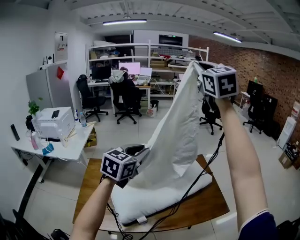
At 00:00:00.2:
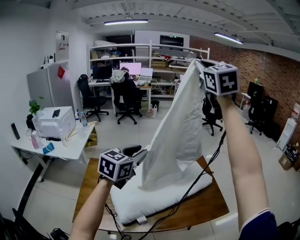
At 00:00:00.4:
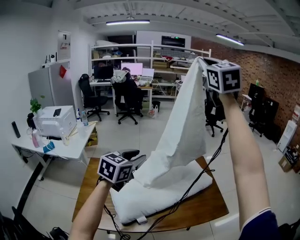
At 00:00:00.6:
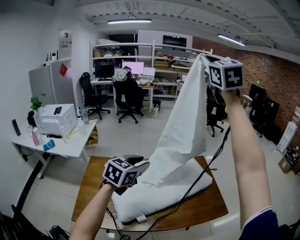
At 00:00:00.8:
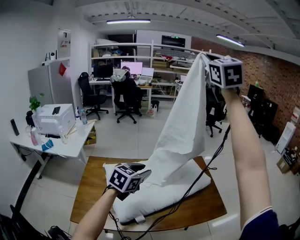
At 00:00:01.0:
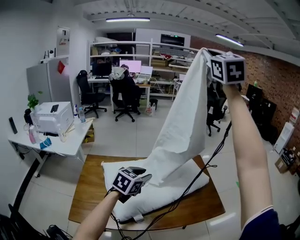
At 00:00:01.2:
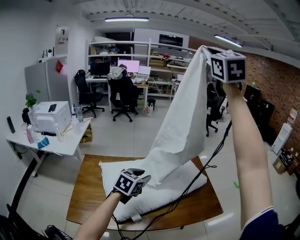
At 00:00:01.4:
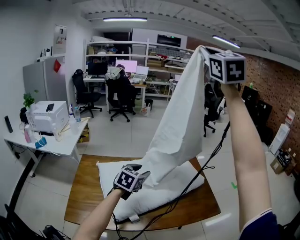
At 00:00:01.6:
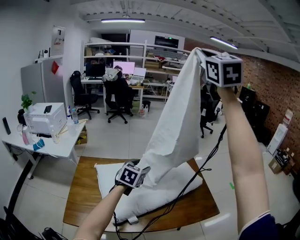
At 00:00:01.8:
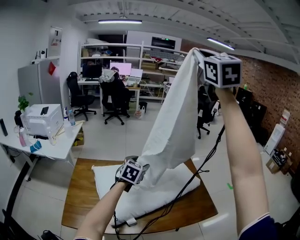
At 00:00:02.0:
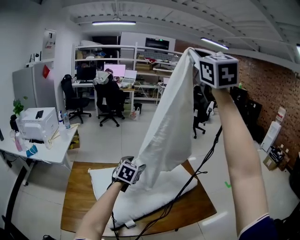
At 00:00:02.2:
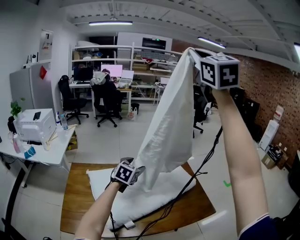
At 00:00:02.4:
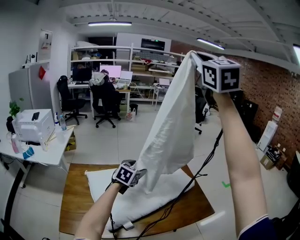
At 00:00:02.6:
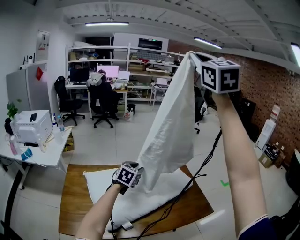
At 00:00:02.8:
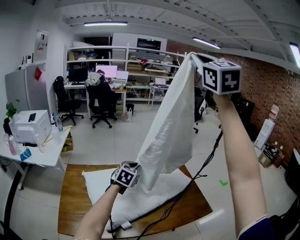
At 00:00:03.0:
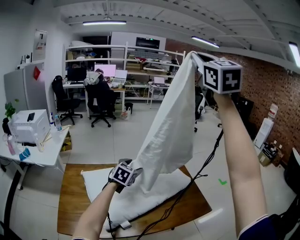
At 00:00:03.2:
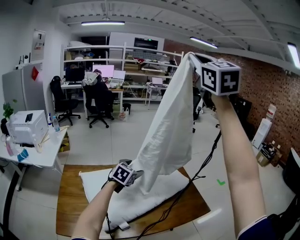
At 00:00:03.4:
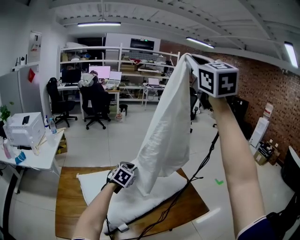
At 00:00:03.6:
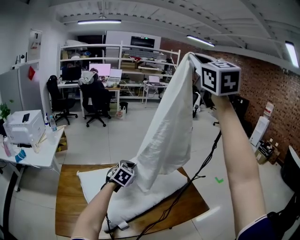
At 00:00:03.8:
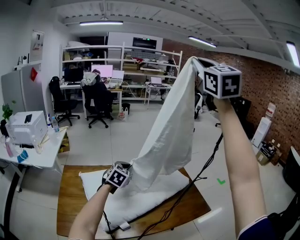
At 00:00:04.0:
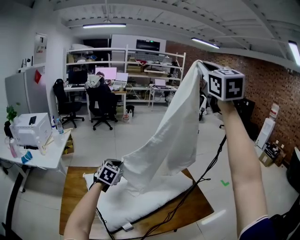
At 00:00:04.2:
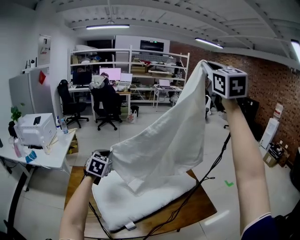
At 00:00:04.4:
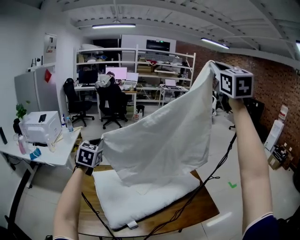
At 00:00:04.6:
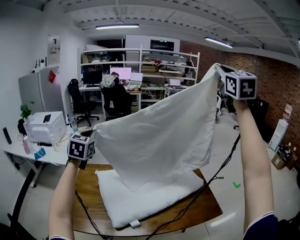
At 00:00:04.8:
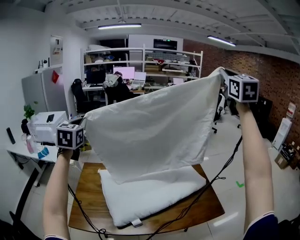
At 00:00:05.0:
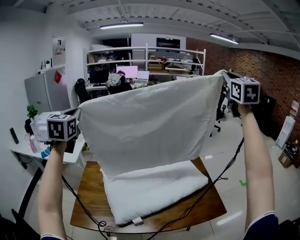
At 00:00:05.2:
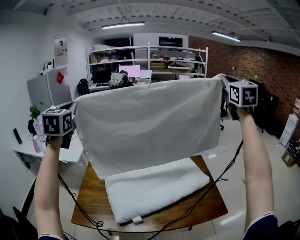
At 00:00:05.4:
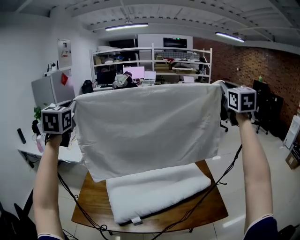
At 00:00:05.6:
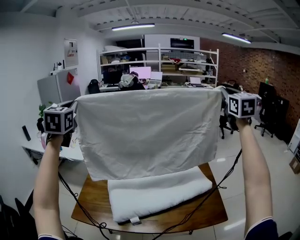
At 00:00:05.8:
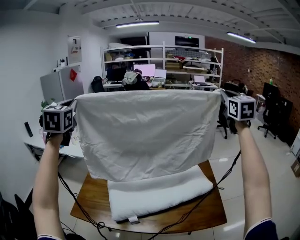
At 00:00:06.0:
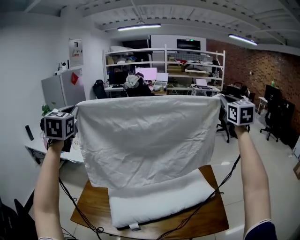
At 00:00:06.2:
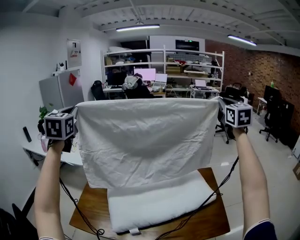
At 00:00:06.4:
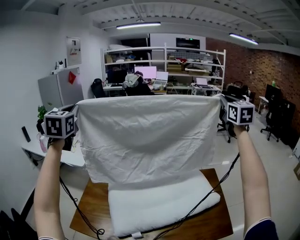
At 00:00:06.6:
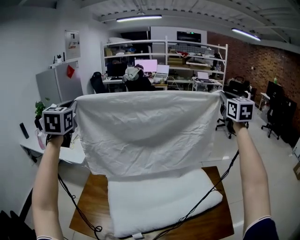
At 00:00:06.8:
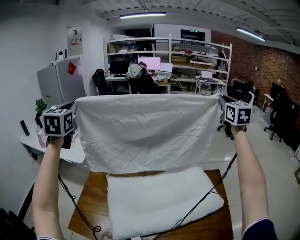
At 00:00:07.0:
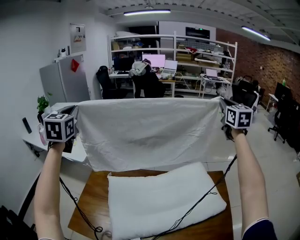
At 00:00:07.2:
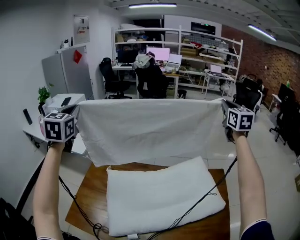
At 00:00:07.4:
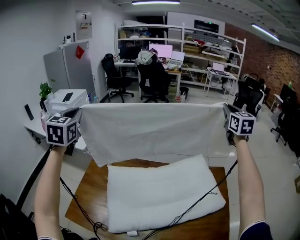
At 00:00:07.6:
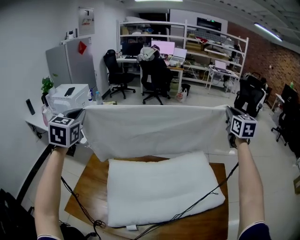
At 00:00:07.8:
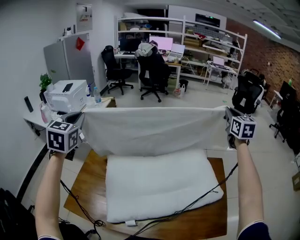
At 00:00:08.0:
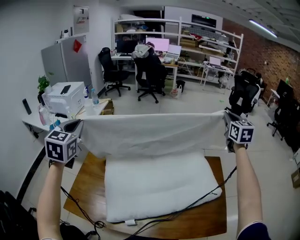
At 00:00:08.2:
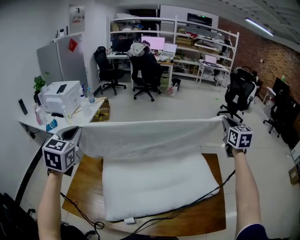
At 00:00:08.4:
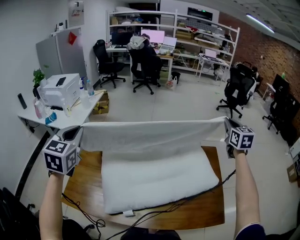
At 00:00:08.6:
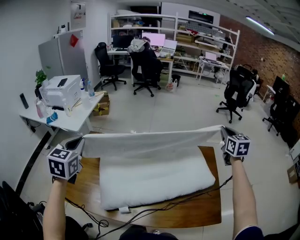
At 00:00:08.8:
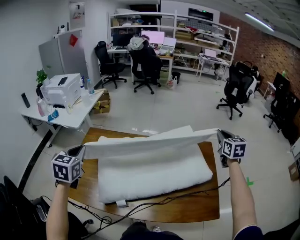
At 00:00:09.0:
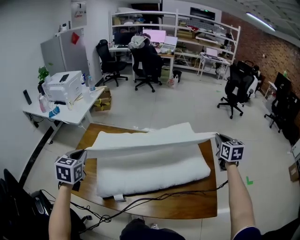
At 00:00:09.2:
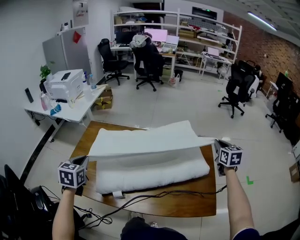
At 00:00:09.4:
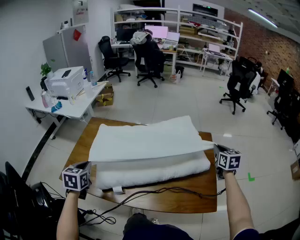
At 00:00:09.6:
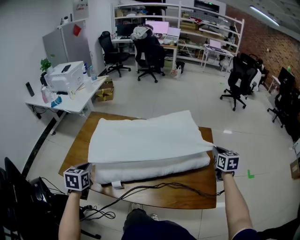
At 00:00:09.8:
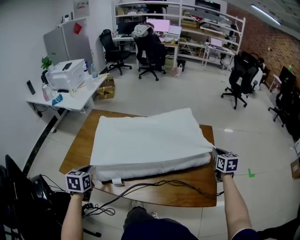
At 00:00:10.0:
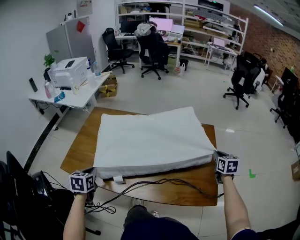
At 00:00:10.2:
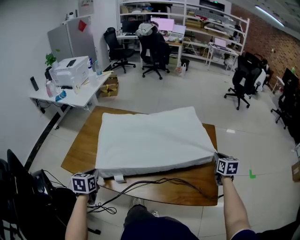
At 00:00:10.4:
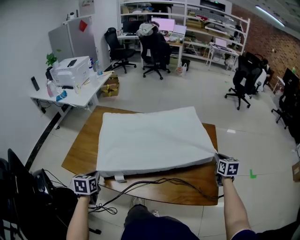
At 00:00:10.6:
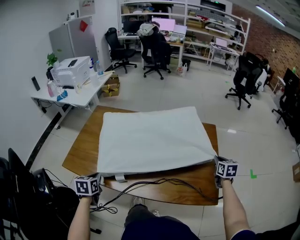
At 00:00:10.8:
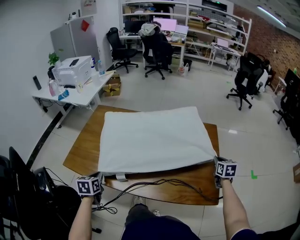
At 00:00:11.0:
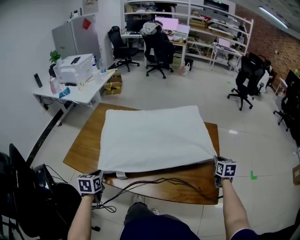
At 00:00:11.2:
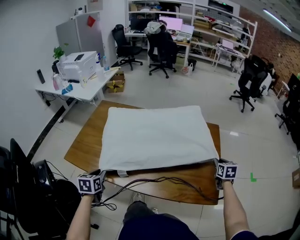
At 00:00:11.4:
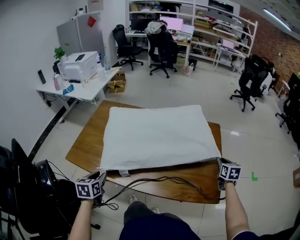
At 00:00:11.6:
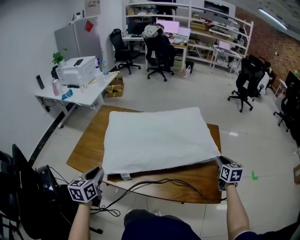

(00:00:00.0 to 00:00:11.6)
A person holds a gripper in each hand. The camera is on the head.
00:00:00.0 - 00:00:01.4: The left gripper travels downward by about 15 cm, and opens; the right gripper moves upward, approximately 5 cm.
00:00:01.4 - 00:00:02.8: The left gripper shifts approximately 10 cm forward, and closes.
00:00:02.8 - 00:00:04.4: The right gripper goes some 5 cm to the right; the left gripper shifts some 30 cm to the left and upward, swivels approximately 30 degrees, and opens, then closes once more.
00:00:04.4 - 00:00:05.8: The left gripper is displaced upward, to the left and backward by about 25 cm, and swivels about 30 degrees, while the right gripper shifts roughly 20 cm downward, forward and to the right.
00:00:05.8 - 00:00:07.2: The grippers both shift forward and downward by some 20 cm.
00:00:07.2 - 00:00:08.8: The two grippers go approximately 30 cm downward and backward. The left gripper swivels about 20 degrees.
00:00:08.8 - 00:00:10.2: Both grippers travel together downward and backward, some 25 cm. The left gripper changes its angle by some 30 degrees.
00:00:10.2 - 00:00:11.6: The left gripper moves upward, roughly 5 cm, while the right gripper ends up about 5 cm from where it was.

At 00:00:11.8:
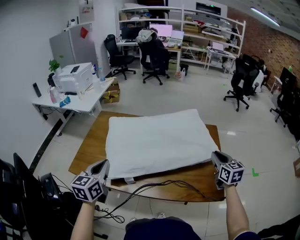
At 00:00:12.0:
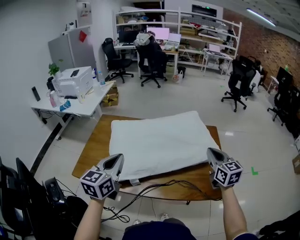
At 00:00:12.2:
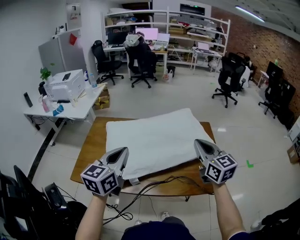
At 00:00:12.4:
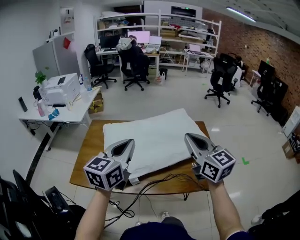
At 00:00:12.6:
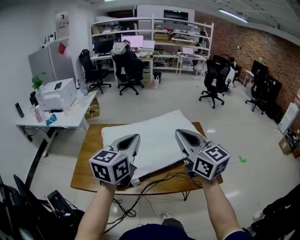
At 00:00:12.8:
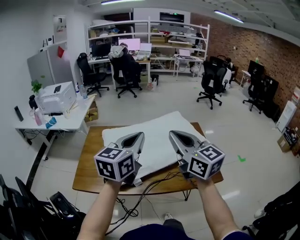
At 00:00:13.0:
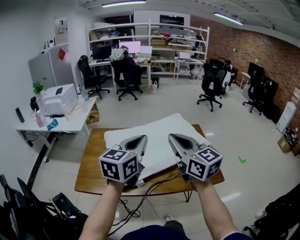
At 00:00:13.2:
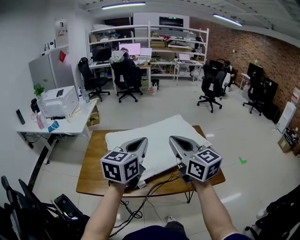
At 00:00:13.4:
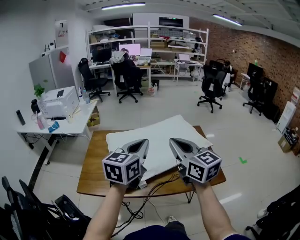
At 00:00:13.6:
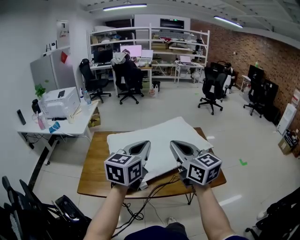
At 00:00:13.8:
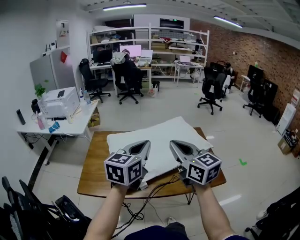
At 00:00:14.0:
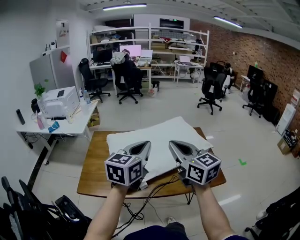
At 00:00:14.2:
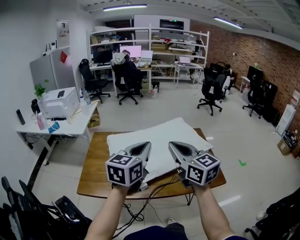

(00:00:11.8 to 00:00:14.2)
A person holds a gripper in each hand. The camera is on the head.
00:00:11.8 - 00:00:13.0: The right gripper travels to the left, upward and backward by about 35 cm, and changes its angle by approximately 30 degrees; the left gripper heads upward and to the right, covering some 20 cm, and changes its angle by approximately 30 degrees.
00:00:13.0 - 00:00:14.2: There are only small adjustments of the grippers.

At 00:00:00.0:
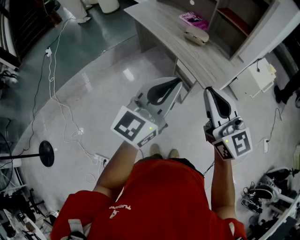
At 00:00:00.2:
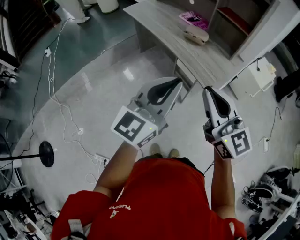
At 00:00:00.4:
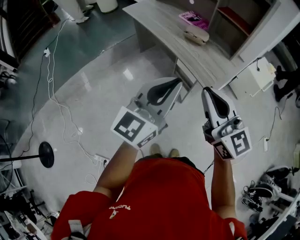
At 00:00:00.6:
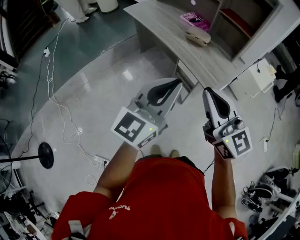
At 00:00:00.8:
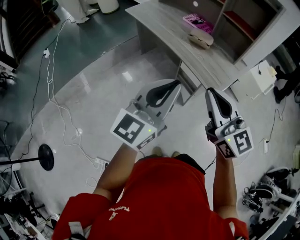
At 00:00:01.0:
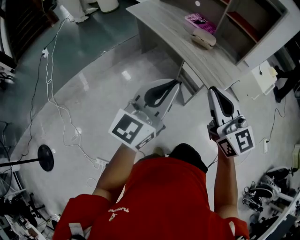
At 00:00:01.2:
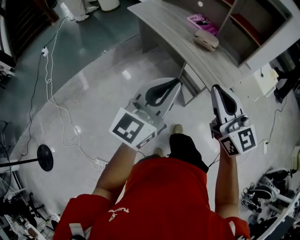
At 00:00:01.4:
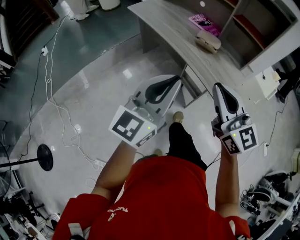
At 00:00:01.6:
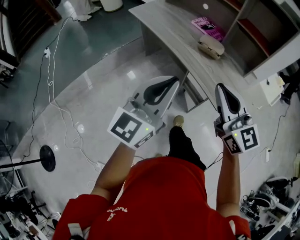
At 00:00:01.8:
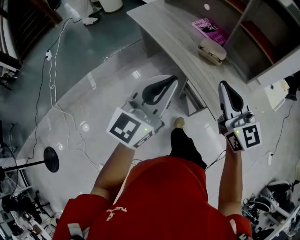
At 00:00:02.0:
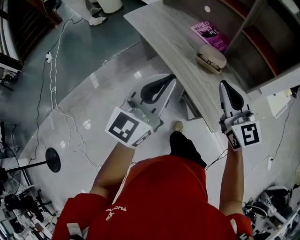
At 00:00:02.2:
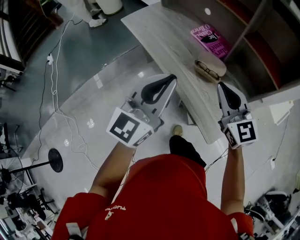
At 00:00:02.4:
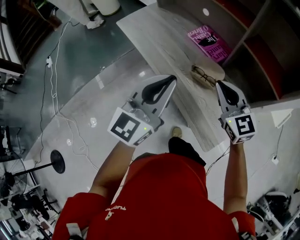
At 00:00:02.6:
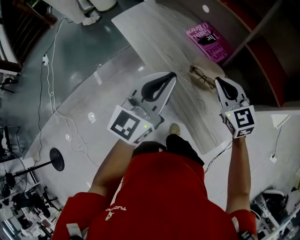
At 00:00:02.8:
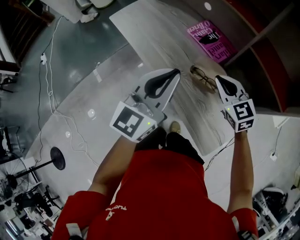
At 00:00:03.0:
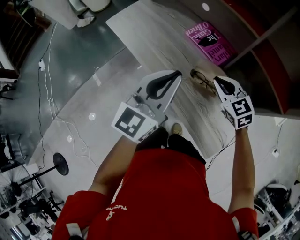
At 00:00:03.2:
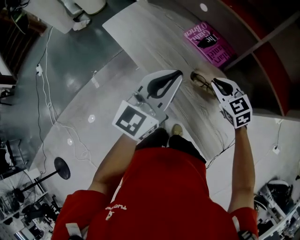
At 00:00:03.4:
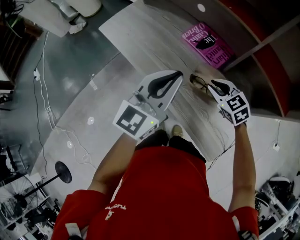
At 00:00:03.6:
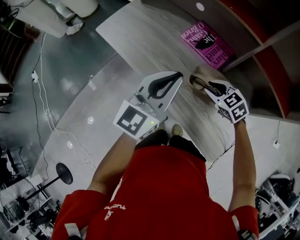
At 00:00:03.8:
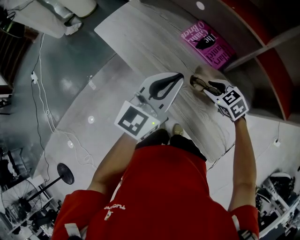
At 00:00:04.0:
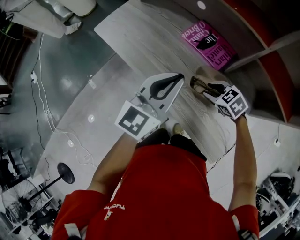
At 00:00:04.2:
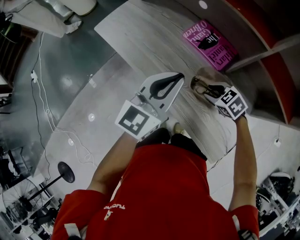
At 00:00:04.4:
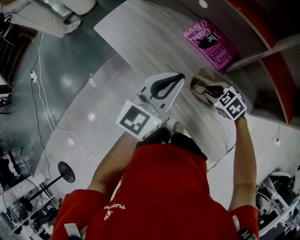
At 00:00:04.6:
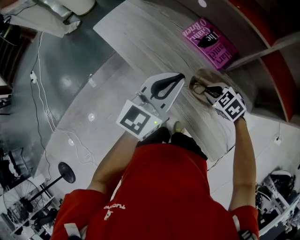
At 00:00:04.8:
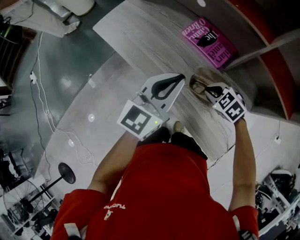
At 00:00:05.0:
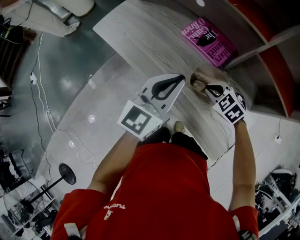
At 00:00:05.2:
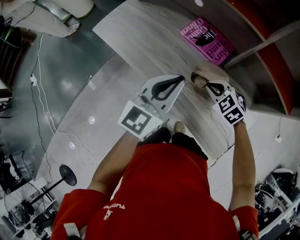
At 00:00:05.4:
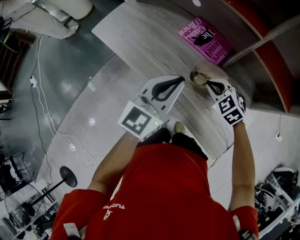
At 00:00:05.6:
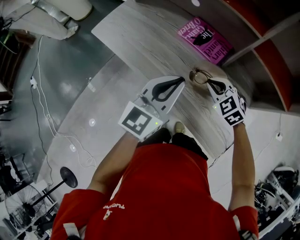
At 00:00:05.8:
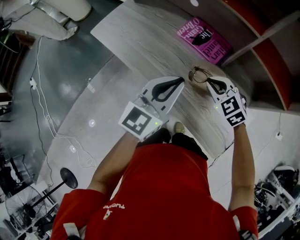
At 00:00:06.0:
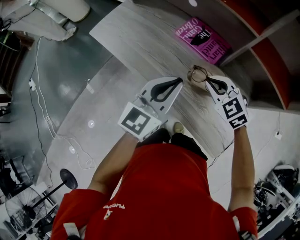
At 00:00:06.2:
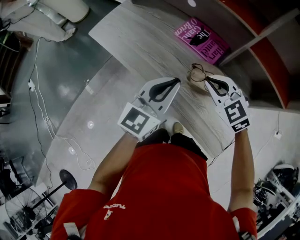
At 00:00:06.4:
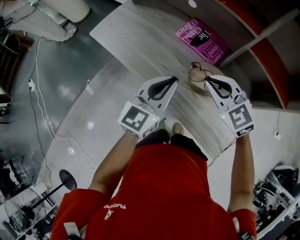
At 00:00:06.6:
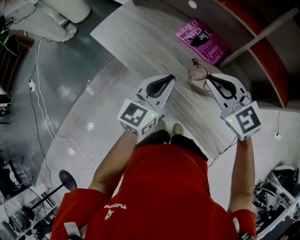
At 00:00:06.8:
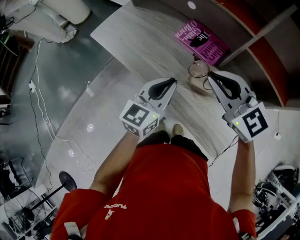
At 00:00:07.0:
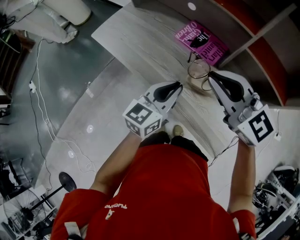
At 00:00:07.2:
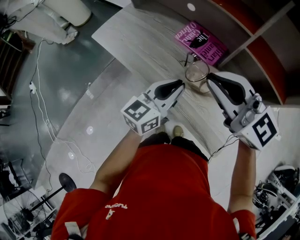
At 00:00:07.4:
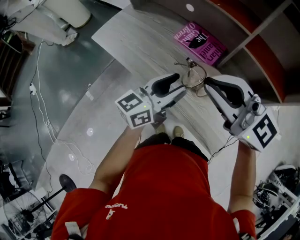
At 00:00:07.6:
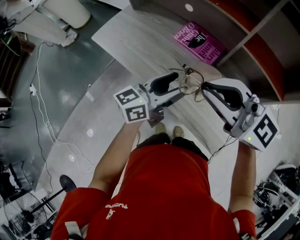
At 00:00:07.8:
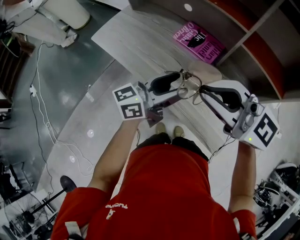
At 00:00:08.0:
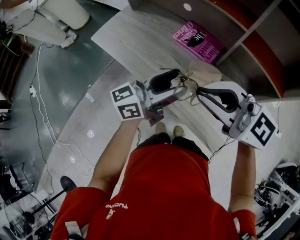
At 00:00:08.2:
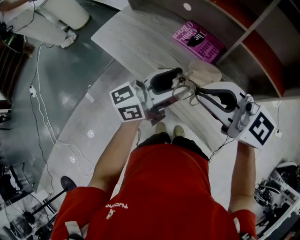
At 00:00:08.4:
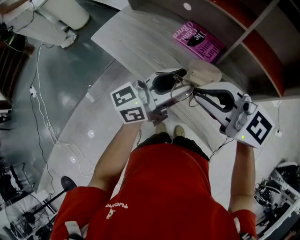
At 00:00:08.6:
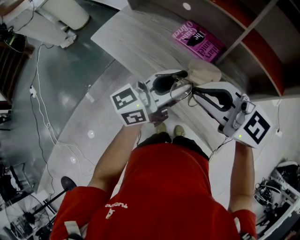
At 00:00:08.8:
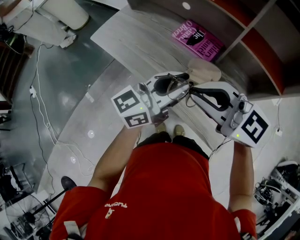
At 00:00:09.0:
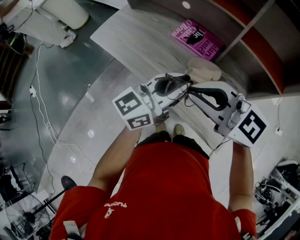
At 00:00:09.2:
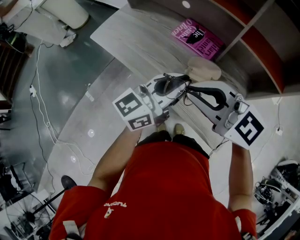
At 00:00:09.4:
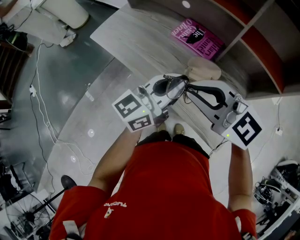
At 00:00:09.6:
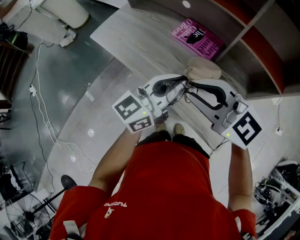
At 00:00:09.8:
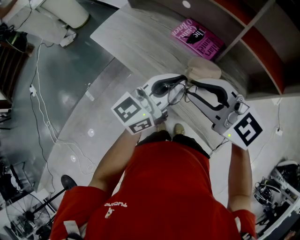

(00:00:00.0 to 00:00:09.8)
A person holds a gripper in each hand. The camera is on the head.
00:00:00.0 - 00:00:01.4: The right gripper moves forward, about 10 cm. The left gripper travels forward and to the left by roughly 10 cm.
00:00:01.4 - 00:00:02.8: The left gripper shifts approximately 35 cm forward. Meanwhile the right gripper is displaced forward and downward by some 40 cm, and changes its angle by about 30 degrees.
00:00:02.8 - 00:00:04.2: The left gripper travels forward and downward by roughly 10 cm, while the right gripper is displaced downward by about 15 cm, tilts its fingers about 30 degrees downward, and opens up.
00:00:04.2 - 00:00:05.6: The right gripper is displaced upward by about 5 cm, changes its angle by some 20 degrees, and closes its fingers.
00:00:05.6 - 00:00:07.0: The right gripper is displaced upward by roughly 25 cm, and points its fingers approximately 40 degrees further upward.
00:00:07.0 - 00:00:08.4: The right gripper ends up roughly 5 cm from where it was, while the left gripper shifts roughly 10 cm upward, swivels approximately 30 degrees, and opens.
00:00:08.4 - 00:00:09.8: The left gripper closes.
